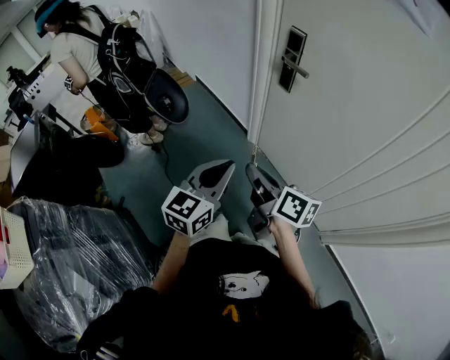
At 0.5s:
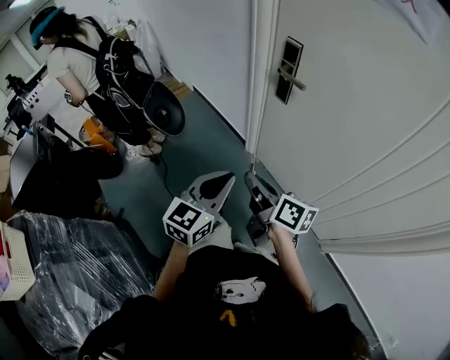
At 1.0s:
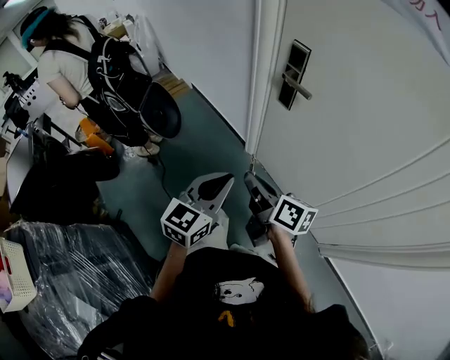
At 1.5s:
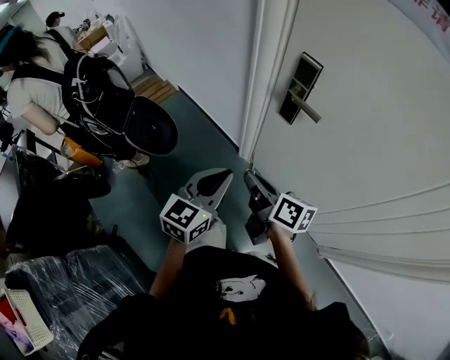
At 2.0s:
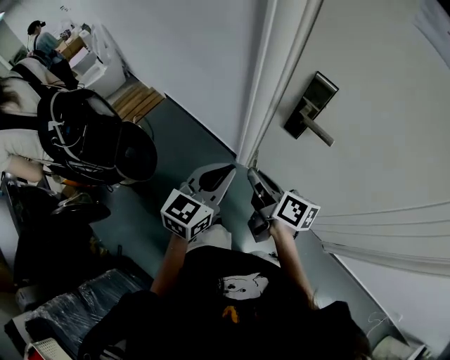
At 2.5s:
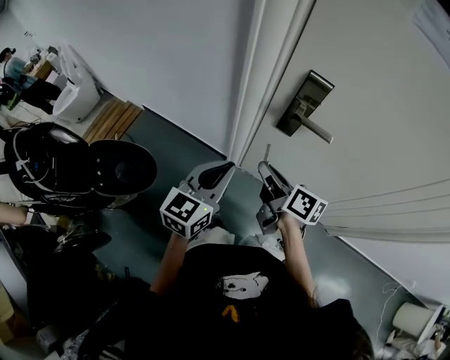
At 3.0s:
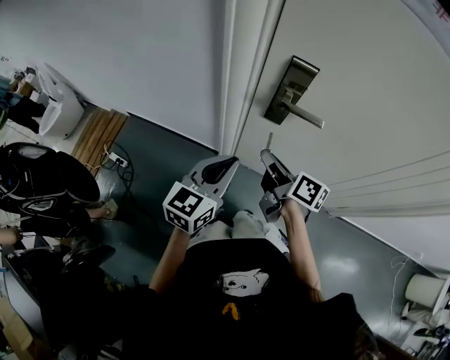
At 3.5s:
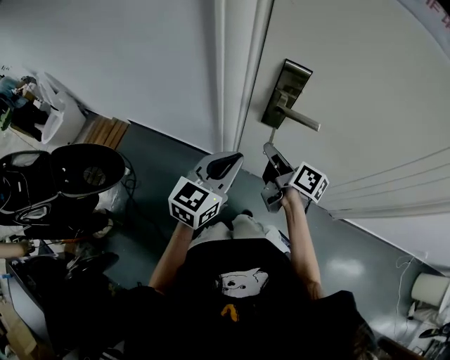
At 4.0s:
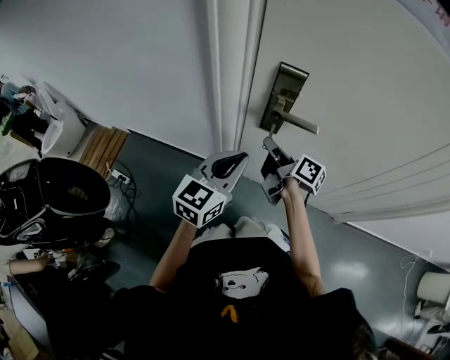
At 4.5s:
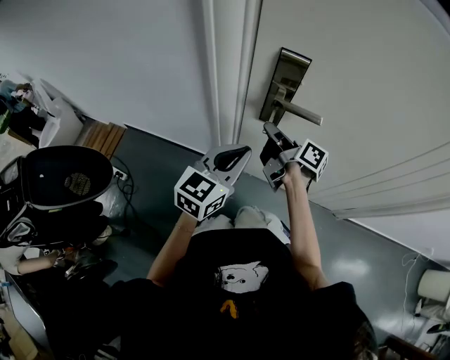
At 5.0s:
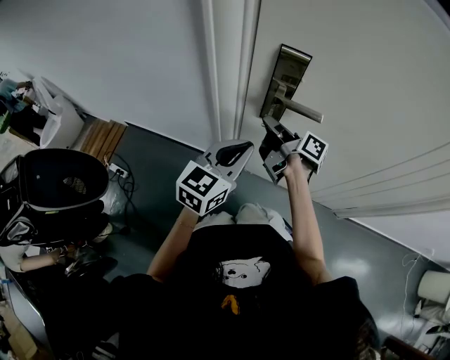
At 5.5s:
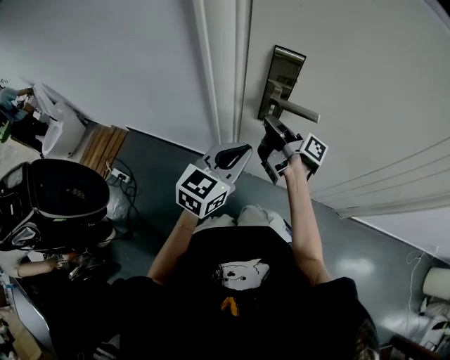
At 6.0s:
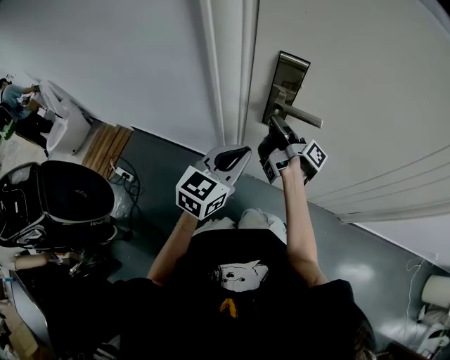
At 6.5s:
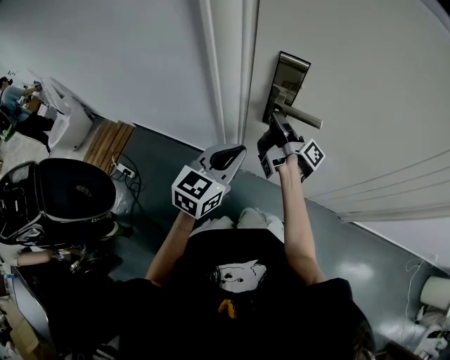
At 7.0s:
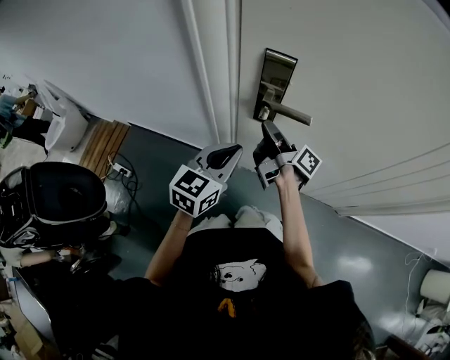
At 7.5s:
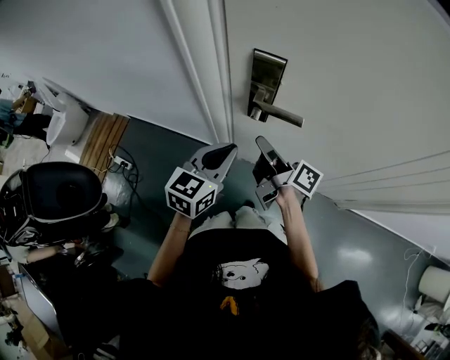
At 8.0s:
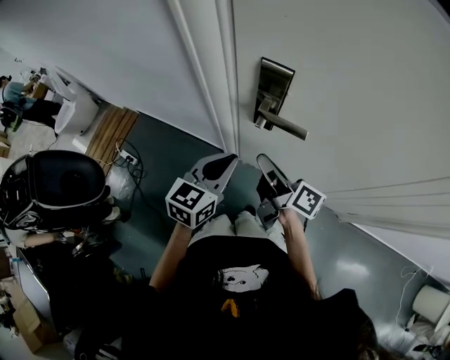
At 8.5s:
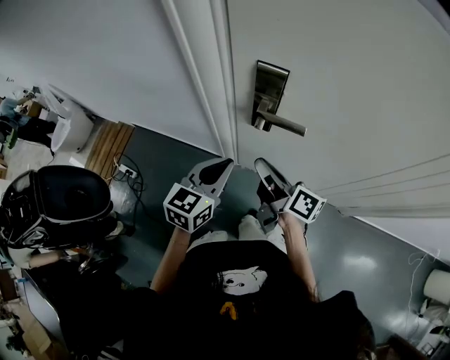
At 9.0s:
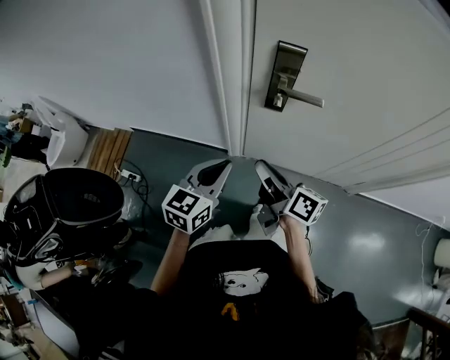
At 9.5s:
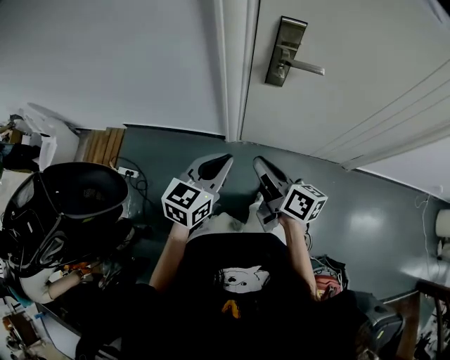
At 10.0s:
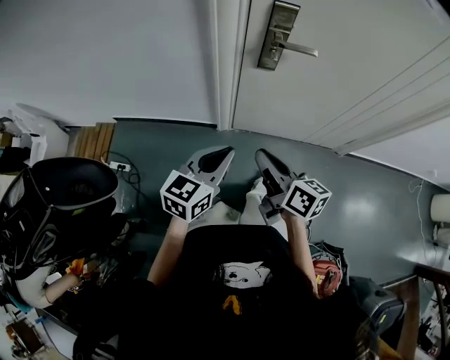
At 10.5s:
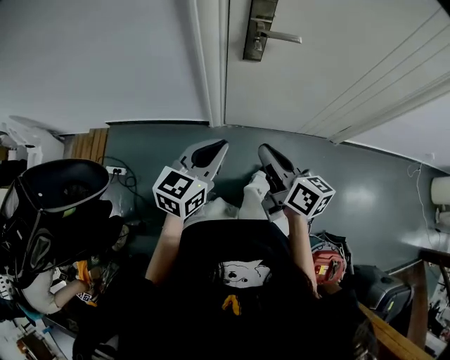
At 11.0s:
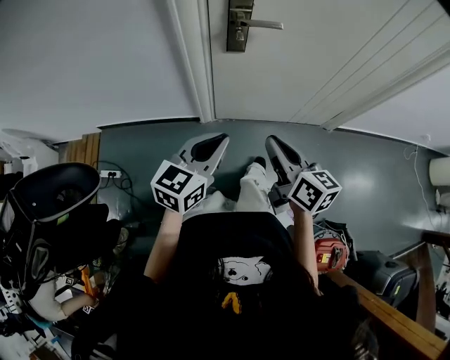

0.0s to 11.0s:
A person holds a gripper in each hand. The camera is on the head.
0.0s to 2.0s: The two grippers go approximately 30 cm forward.
2.0s to 3.5s: The left gripper is displaced forward by roughly 5 cm, and changes its angle by about 20 degrees, while the right gripper shifts some 10 cm forward and to the right, and turns by roughly 30 degrees.
3.5s to 5.5s: The left gripper changes place by about 5 cm, while the right gripper heads forward, covering roughly 10 cm, and changes its angle by about 30 degrees.
5.5s to 7.5s: The right gripper heads backward, covering roughly 5 cm.
7.5s to 9.0s: The left gripper moves to the left and backward, about 15 cm, while the right gripper heads backward and to the left, covering about 15 cm.
9.0s to 11.0s: The two grippers go about 15 cm backward. The right gripper rotates about 30 degrees.

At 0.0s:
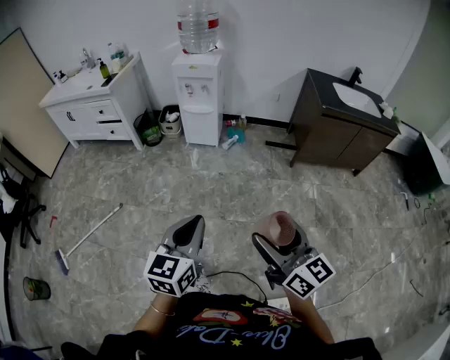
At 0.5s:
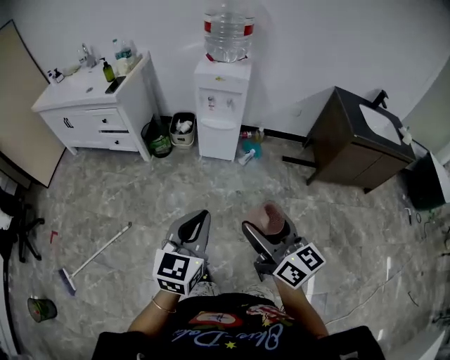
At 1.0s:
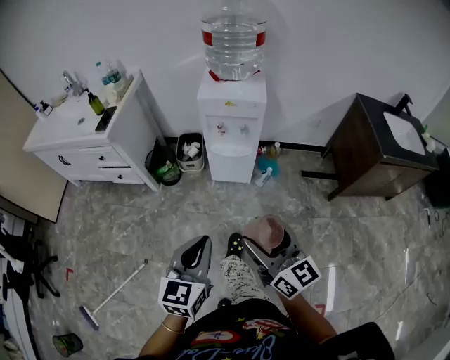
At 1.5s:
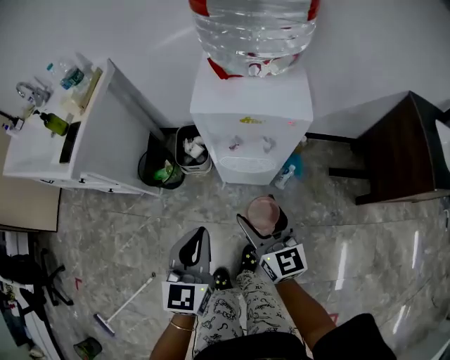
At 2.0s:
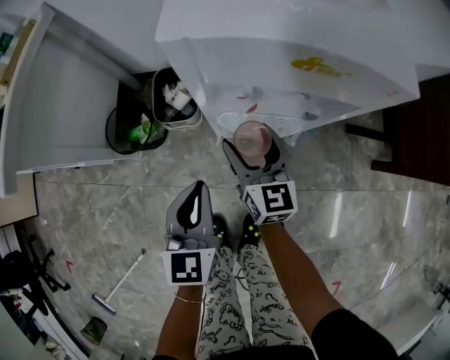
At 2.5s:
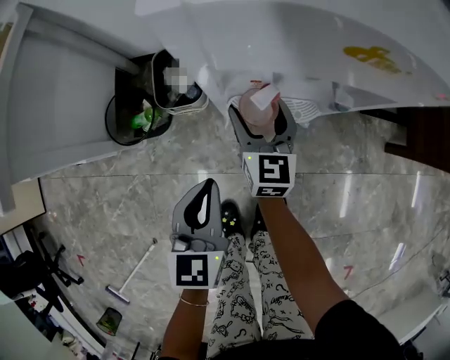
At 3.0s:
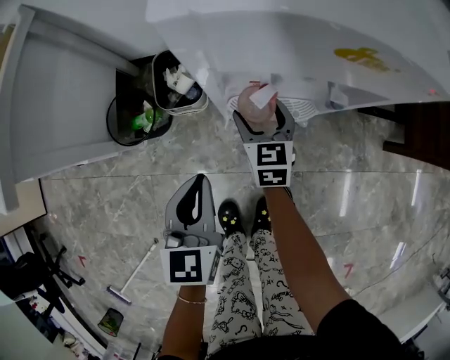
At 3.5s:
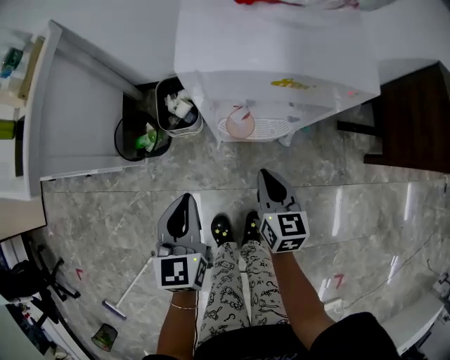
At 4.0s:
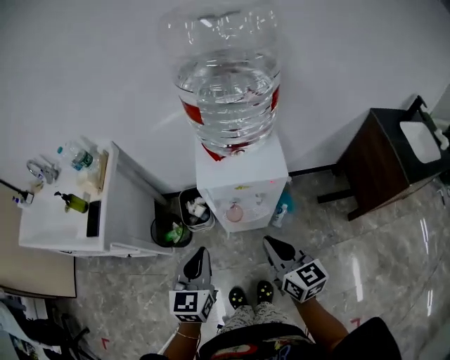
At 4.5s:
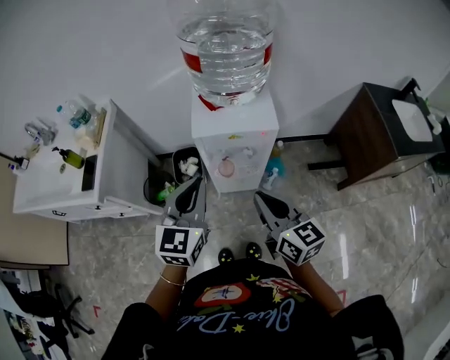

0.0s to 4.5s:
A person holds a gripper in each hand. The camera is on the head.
0.0s to 2.0s: The two grippers travel together, forward, some 90 cm. The two grippers go some 40 cm downward. The right gripper swivels approximately 20 degrees.
2.0s to 4.5s: The left gripper is displaced upward by roughly 35 cm, and rotates approximately 20 degrees, while the right gripper goes roughly 40 cm upward and backward, and closes up.

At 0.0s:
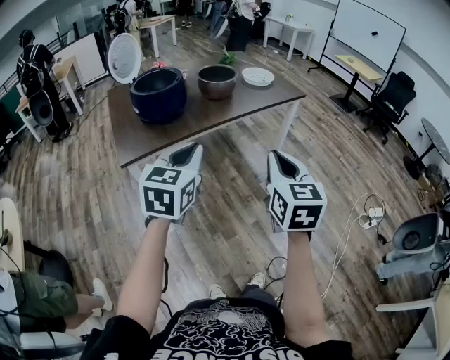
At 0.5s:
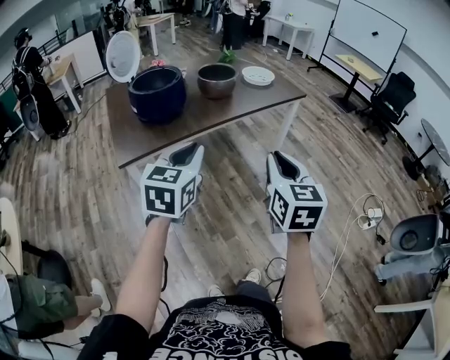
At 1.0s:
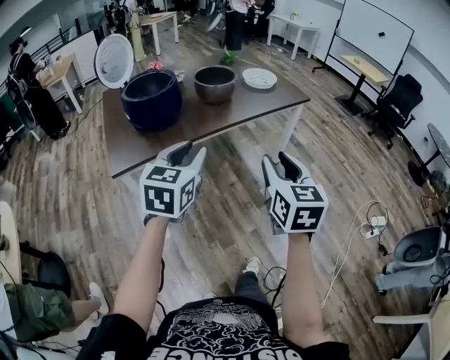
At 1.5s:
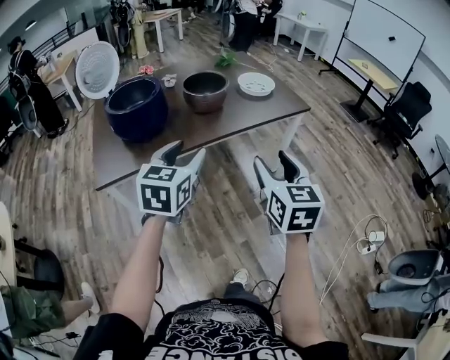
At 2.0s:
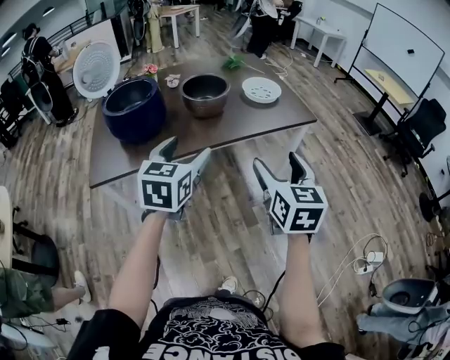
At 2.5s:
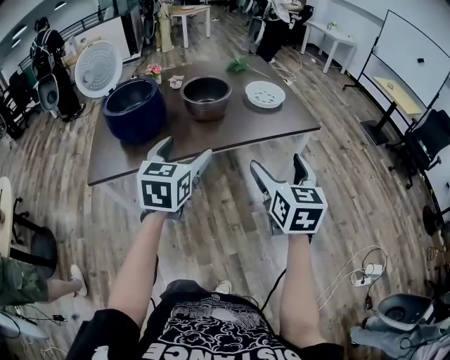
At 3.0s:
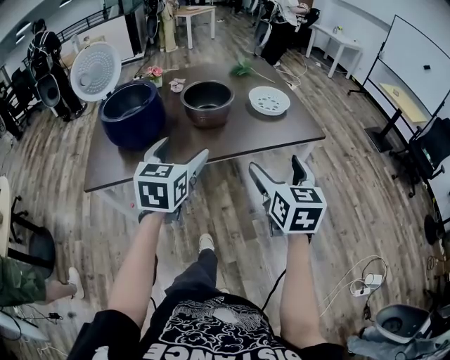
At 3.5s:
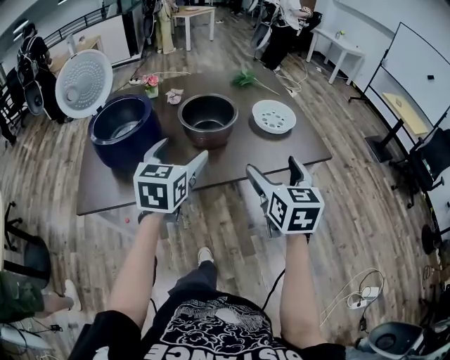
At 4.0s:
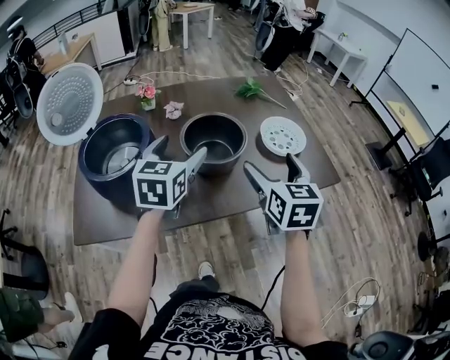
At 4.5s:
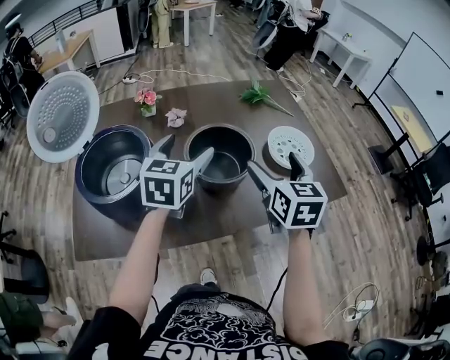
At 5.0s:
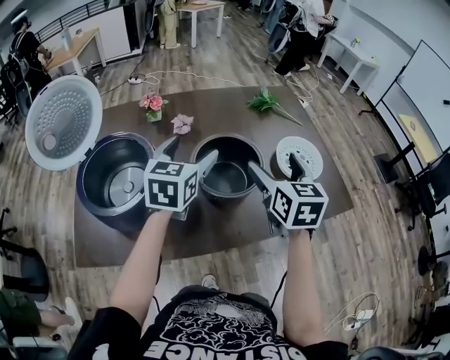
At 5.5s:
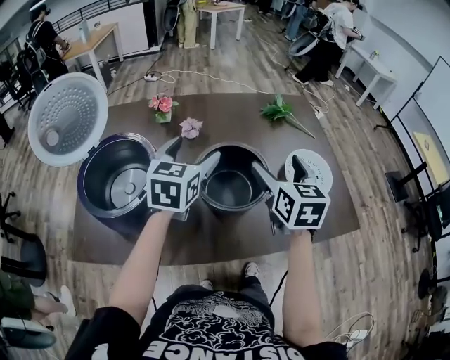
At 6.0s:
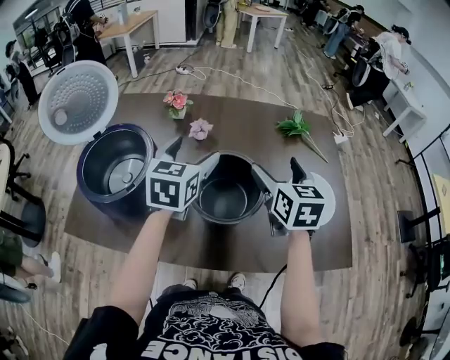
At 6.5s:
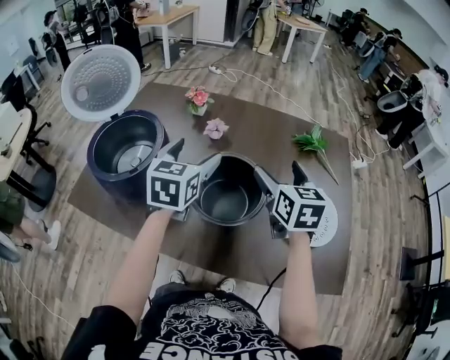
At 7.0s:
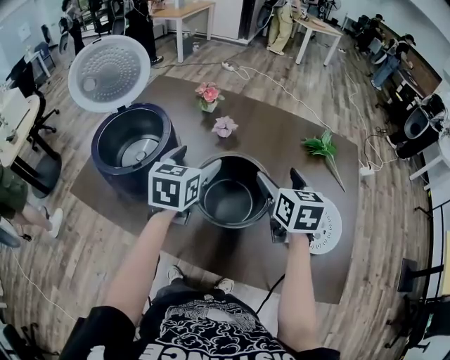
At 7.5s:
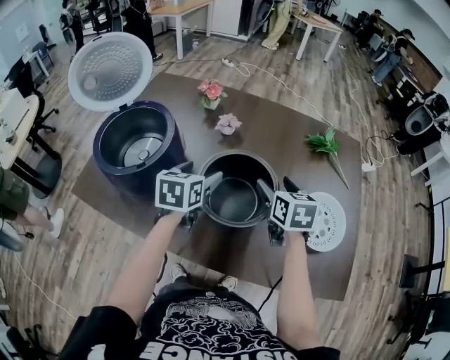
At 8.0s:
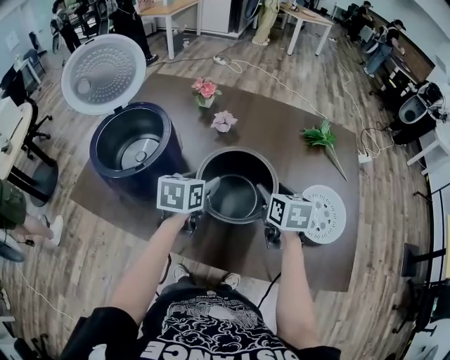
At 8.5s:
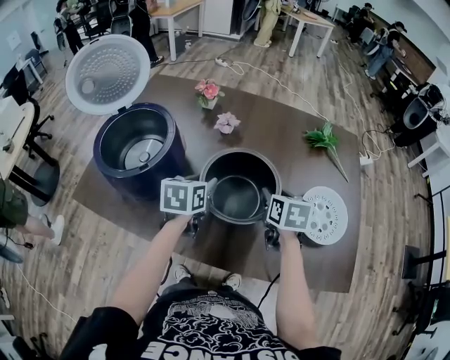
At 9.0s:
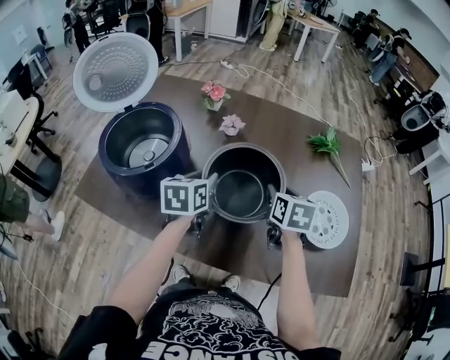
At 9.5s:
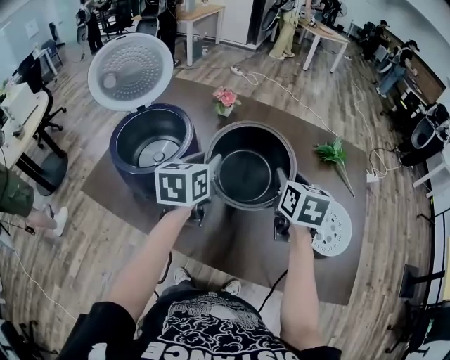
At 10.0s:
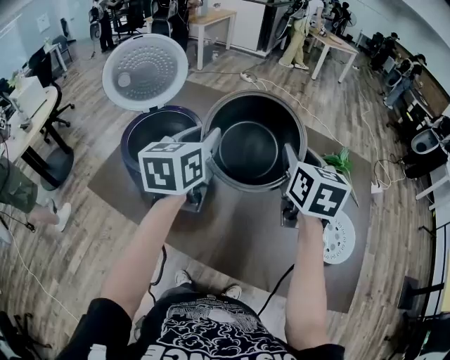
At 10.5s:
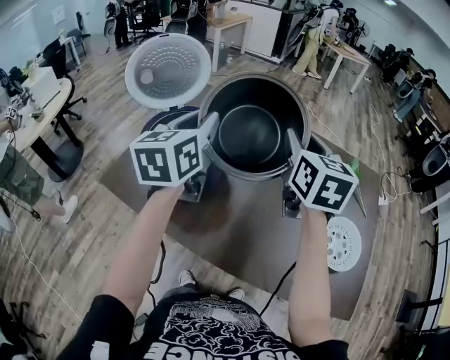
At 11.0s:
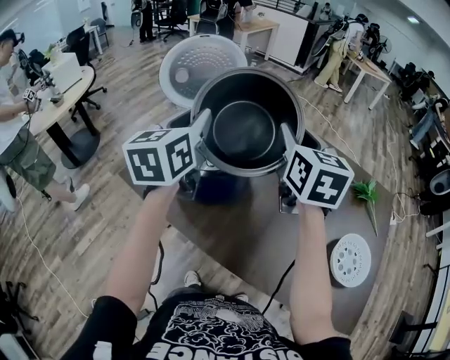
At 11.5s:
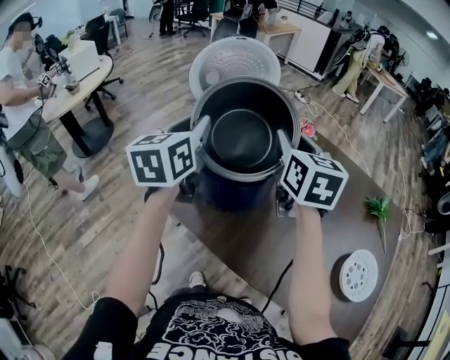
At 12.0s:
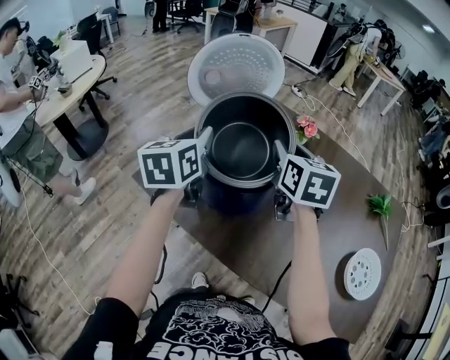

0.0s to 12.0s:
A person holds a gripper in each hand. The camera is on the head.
0.0s to 2.0s: The grippers both shift forward and to the right by roughly 30 cm. The left gripper opens its fingers. The right gripper opens.
2.0s to 4.0s: Both grippers travel together forward, approximately 30 cm.
4.0s to 6.0s: The grippers both shift forward by about 20 cm.
6.0s to 8.0s: The two grippers go some 10 cm downward. The left gripper turns by about 30 degrees, and closes. The right gripper rotates about 20 degrees, and closes its fingers.
8.0s to 10.0s: The right gripper is displaced upward by approximately 20 cm, and rotates some 20 degrees; the left gripper travels upward and to the left by roughly 20 cm, and rotates about 30 degrees.
10.0s to 12.0s: Both grippers travel together to the left, approximately 25 cm.
